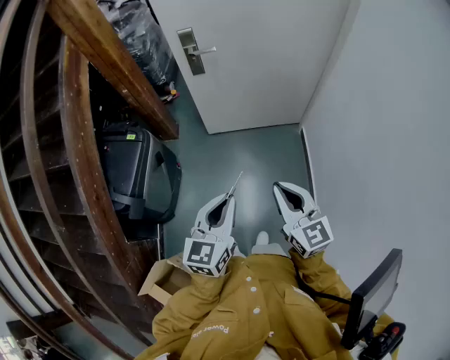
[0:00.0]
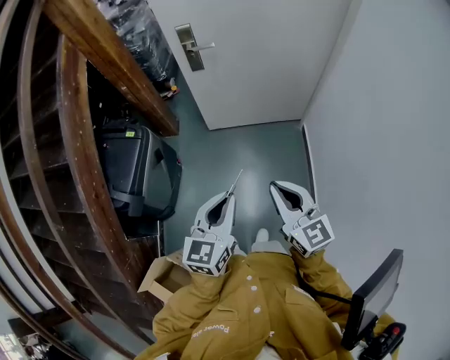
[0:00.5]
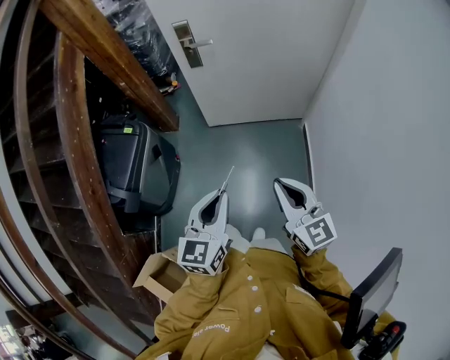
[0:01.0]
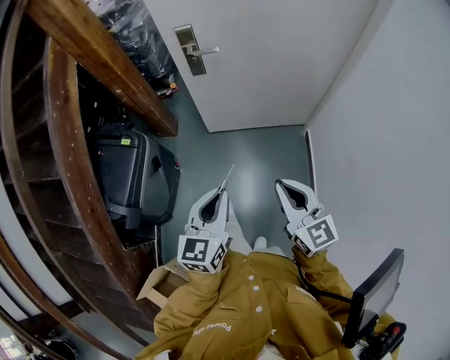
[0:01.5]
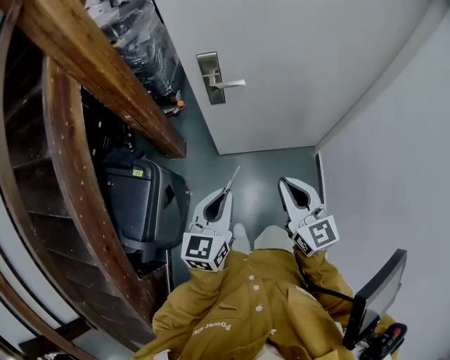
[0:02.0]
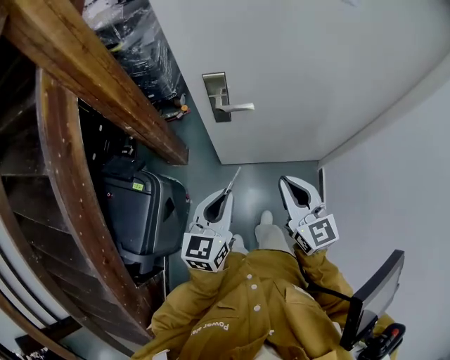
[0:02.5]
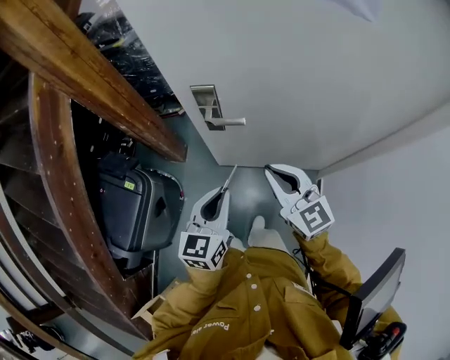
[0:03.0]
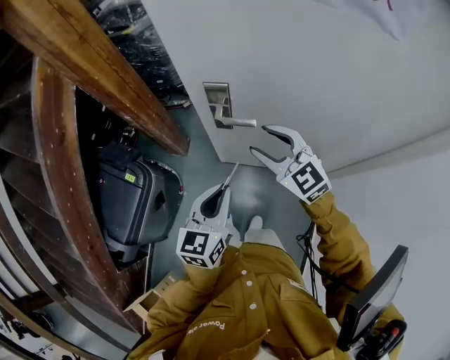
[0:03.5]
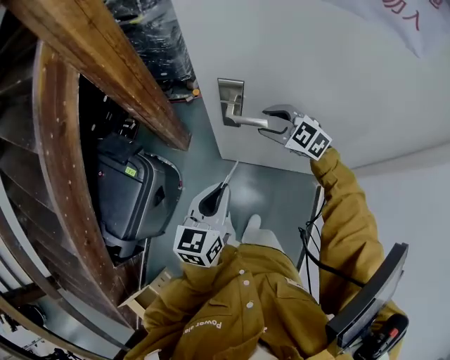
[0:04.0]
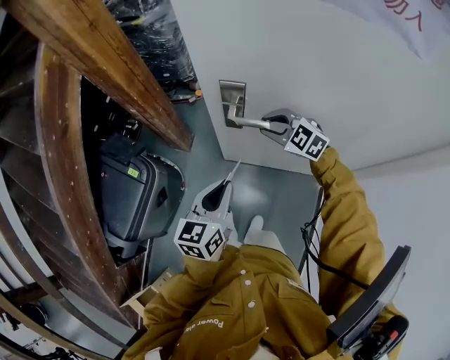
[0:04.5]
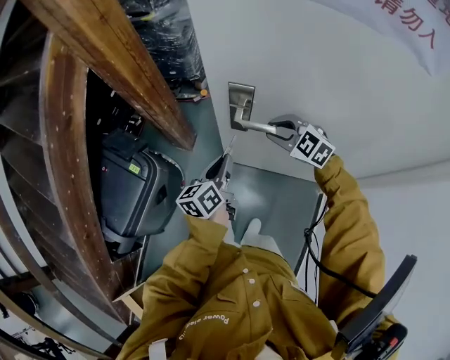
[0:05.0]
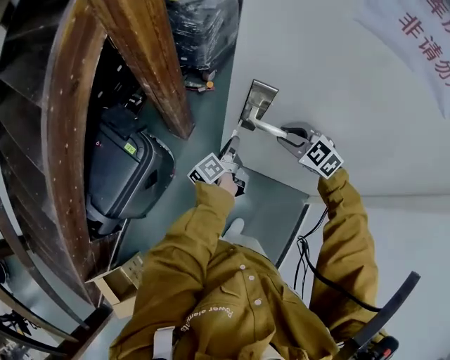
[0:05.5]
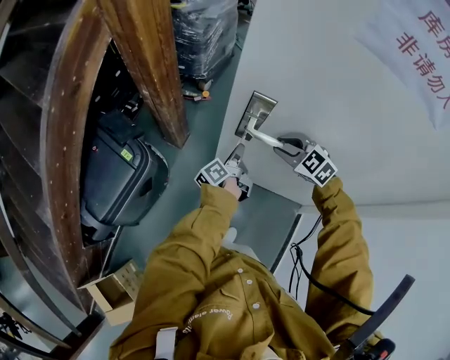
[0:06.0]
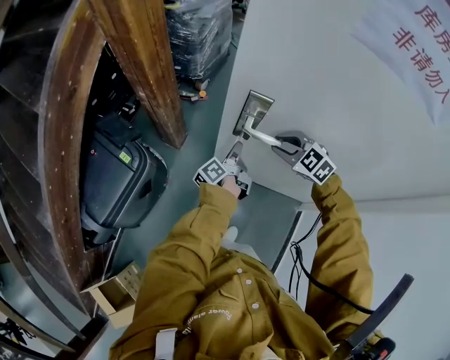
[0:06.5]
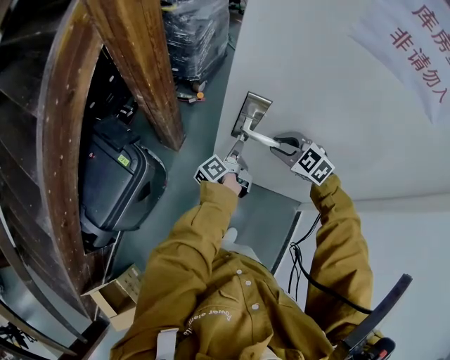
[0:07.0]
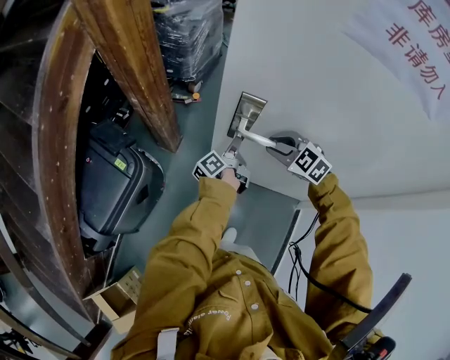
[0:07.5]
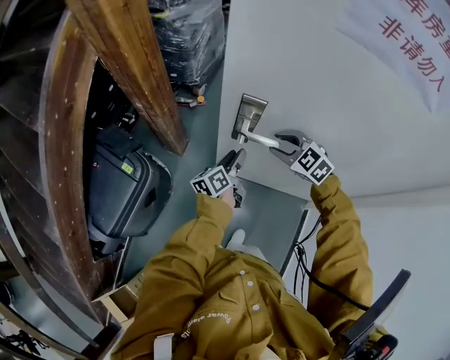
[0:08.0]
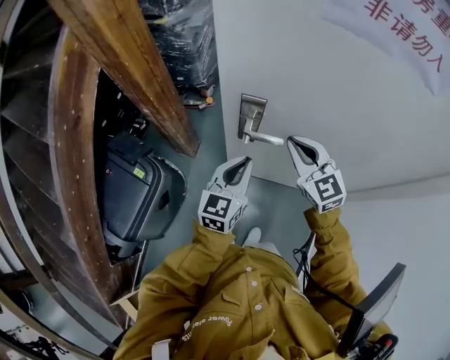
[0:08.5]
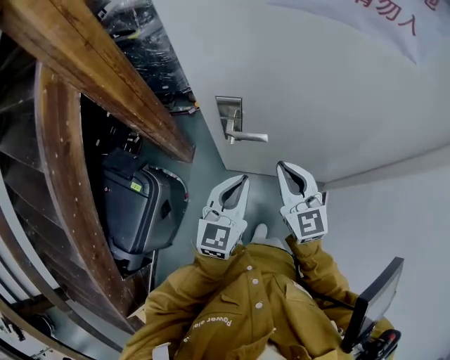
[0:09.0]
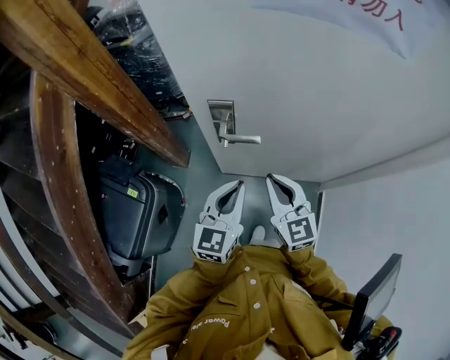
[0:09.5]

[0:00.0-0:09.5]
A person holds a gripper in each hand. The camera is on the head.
0:00.0 to 0:02.0: The grippers both shift forward by about 30 cm.
0:02.0 to 0:04.0: The right gripper moves roughly 40 cm, tips its fingers downward by roughly 30 degrees, and opens, while the left gripper ends up approximately 20 cm from where it was.
0:04.0 to 0:05.5: The left gripper travels forward and downward by approximately 20 cm, and rotates around the line of its fingers by roughly 60 degrees, counterclockwise from behind, while the right gripper closes.
0:05.5 to 0:07.5: The left gripper moves to the right, roughly 5 cm.
0:07.5 to 0:09.5: The right gripper ends up roughly 15 cm from where it was, tips its fingers upward by some 40 degrees, and closes. The left gripper changes place by about 25 cm, rotates around the line of its fingers by about 80 degrees, clockwise from behind, and opens, then closes once more.

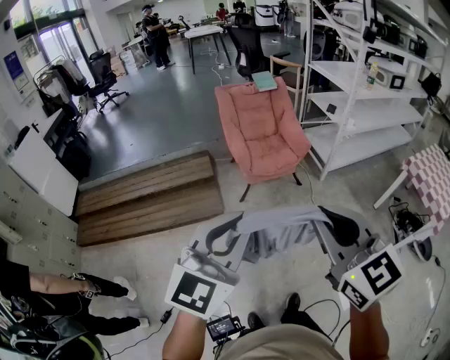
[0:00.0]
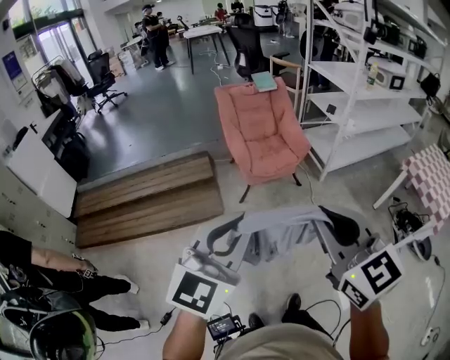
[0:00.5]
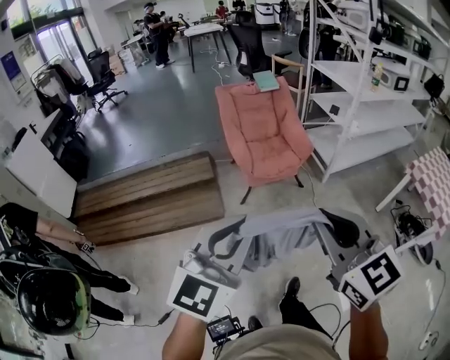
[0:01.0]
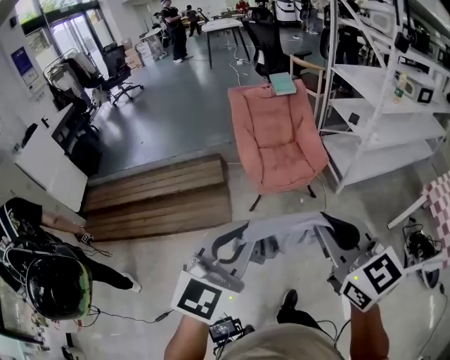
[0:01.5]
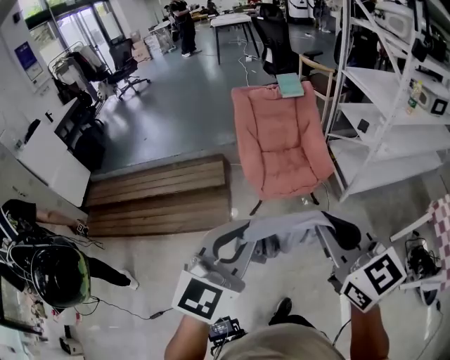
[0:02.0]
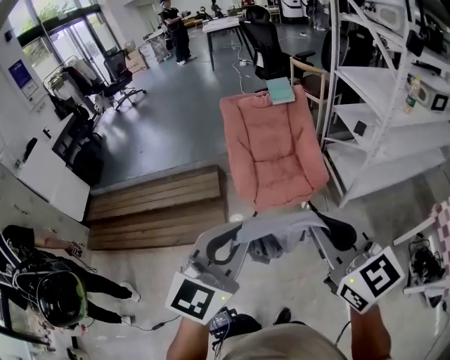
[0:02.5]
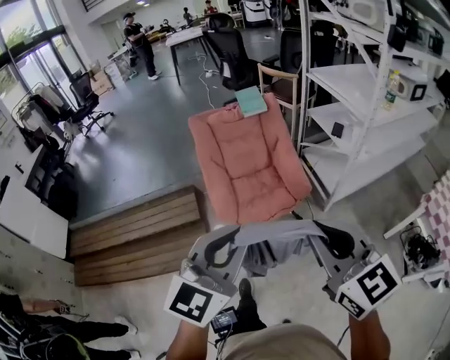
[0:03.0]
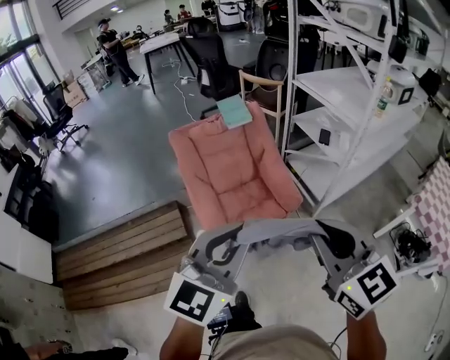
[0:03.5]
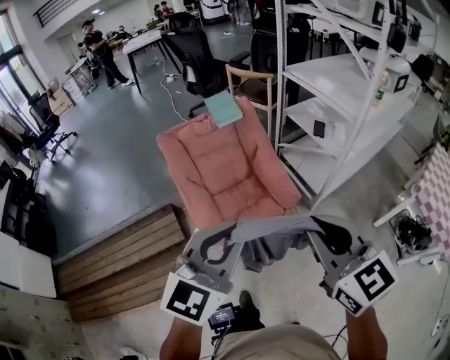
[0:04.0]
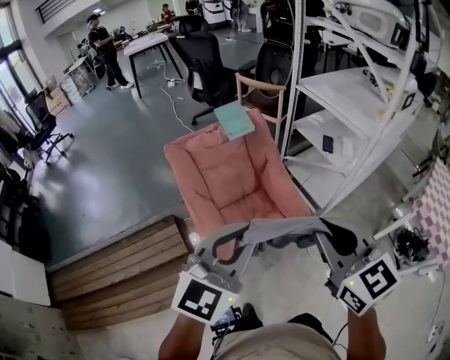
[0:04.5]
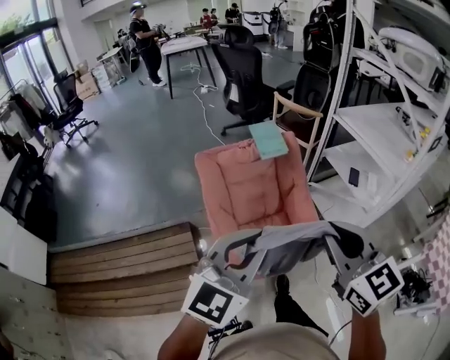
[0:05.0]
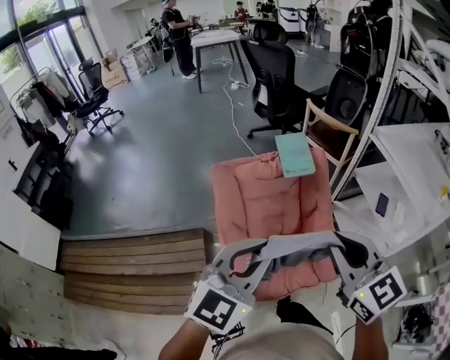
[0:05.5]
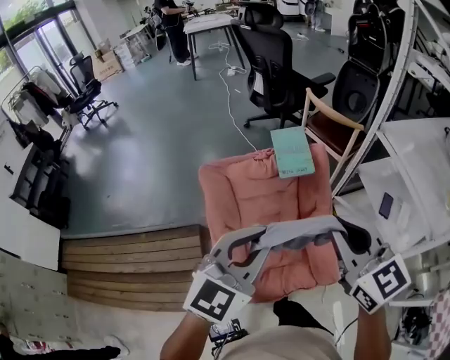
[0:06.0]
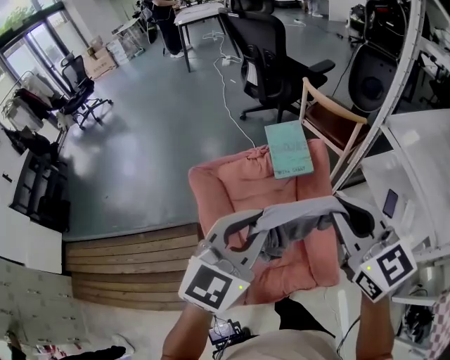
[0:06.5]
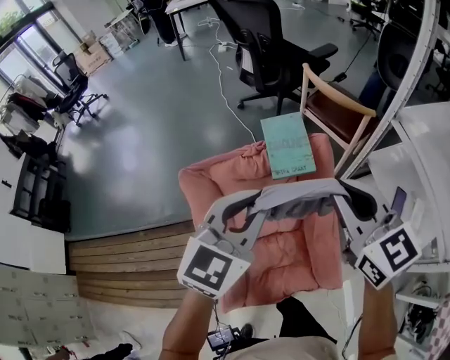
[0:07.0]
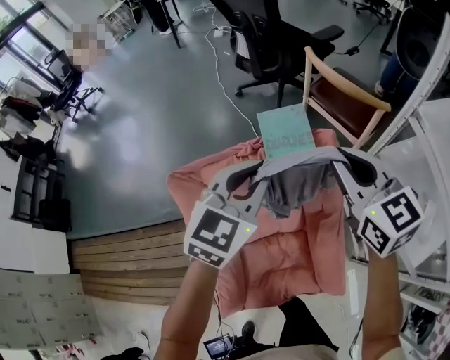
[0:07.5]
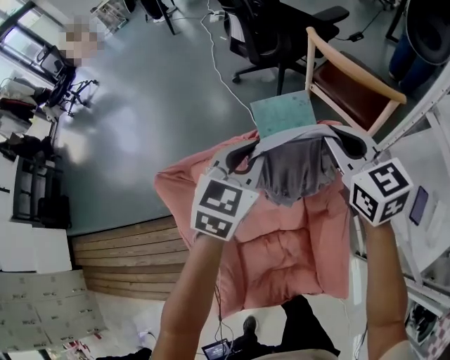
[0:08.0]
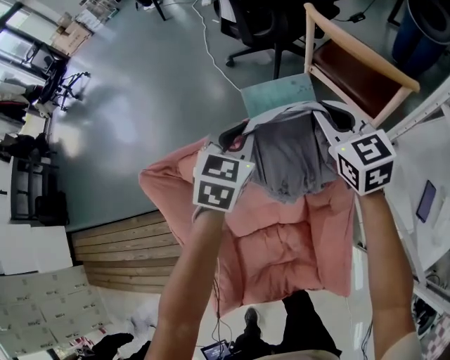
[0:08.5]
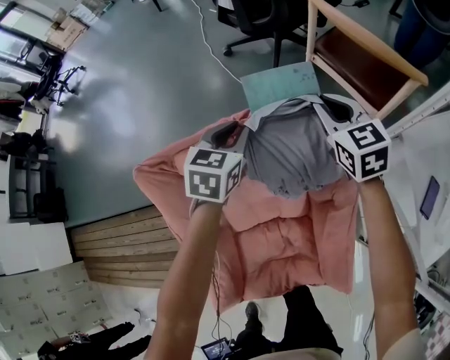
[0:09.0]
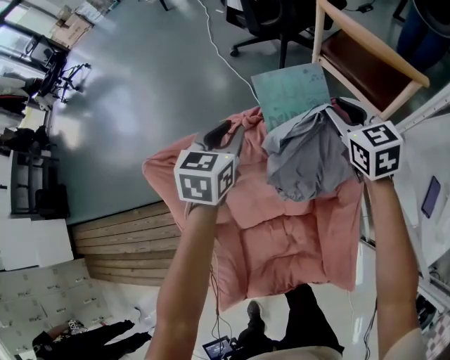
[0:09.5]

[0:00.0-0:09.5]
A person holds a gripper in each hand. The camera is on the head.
0:00.0 to 0:02.0: Both grippers travel together forward, approximately 25 cm.
0:02.0 to 0:04.0: The two grippers go about 35 cm forward. The left gripper swivels about 20 degrees; the right gripper turns by roughly 20 degrees.
0:04.0 to 0:05.5: The two grippers go some 30 cm forward and to the left.
0:05.5 to 0:07.5: Both grippers are carried forward, about 50 cm.
0:07.5 to 0:09.5: The left gripper is displaced downward, forward and to the left by about 25 cm, and rotates about 30 degrees, while the right gripper shifts some 30 cm downward and forward, and opens.

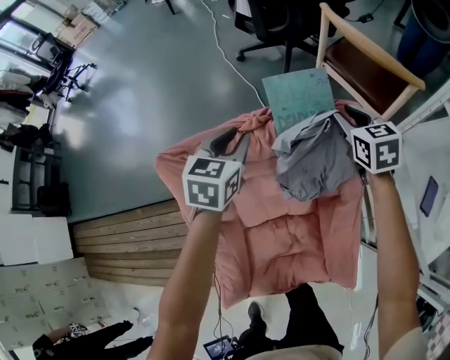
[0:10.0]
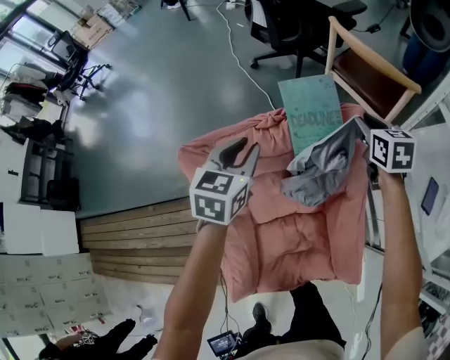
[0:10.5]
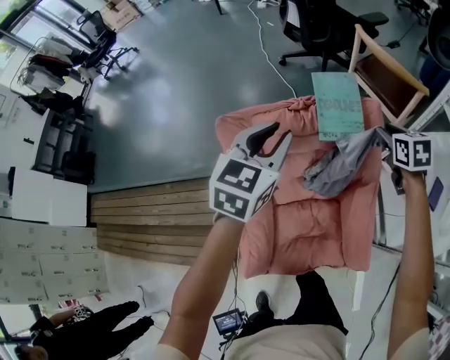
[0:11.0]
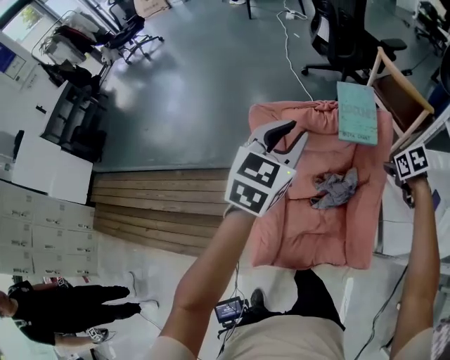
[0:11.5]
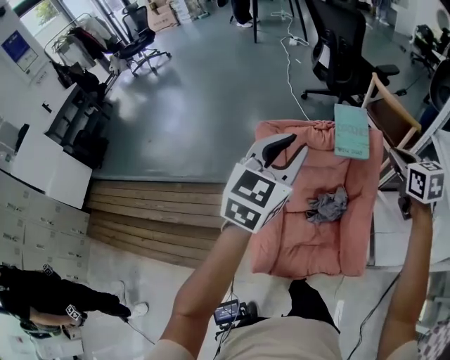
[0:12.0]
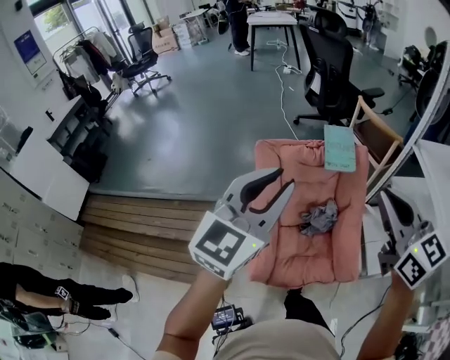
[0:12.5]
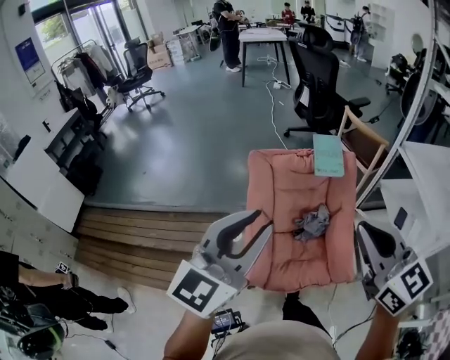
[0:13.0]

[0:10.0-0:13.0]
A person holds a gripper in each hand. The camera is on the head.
0:10.0 to 0:11.5: The left gripper moves backward and upward, about 35 cm. Meanwhile the right gripper is displaced backward by some 20 cm, and tips its fingers downward by some 30 degrees.
0:11.5 to 0:13.0: The right gripper heads backward, upward and to the left, covering about 60 cm, points its fingers approximately 60 degrees further upward, and closes up. Meanwhile the left gripper shifts approximately 40 cm backward and upward, and swivels some 20 degrees.

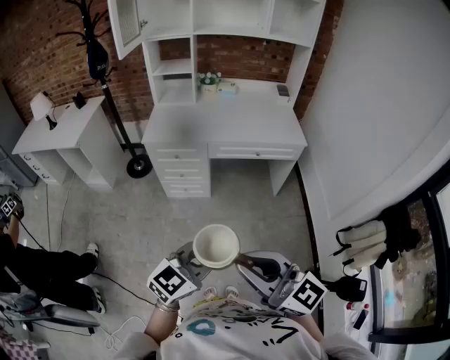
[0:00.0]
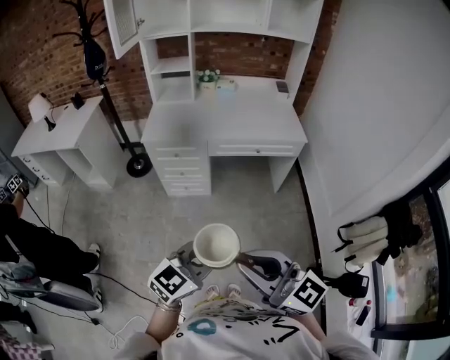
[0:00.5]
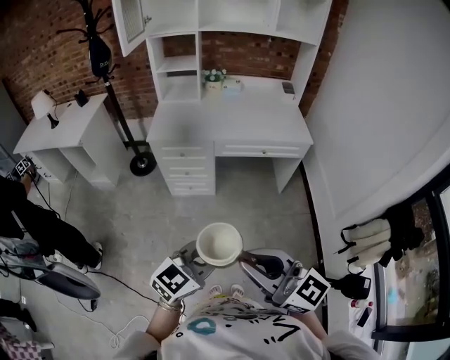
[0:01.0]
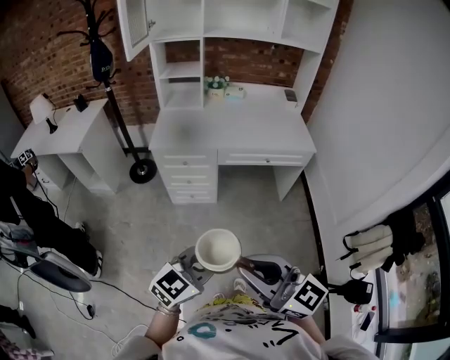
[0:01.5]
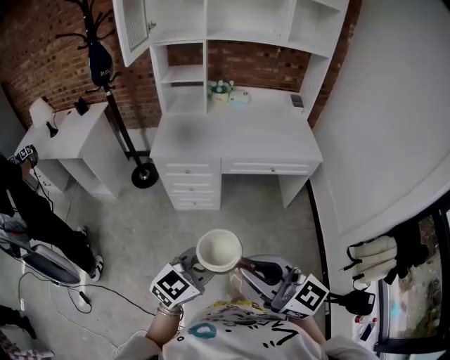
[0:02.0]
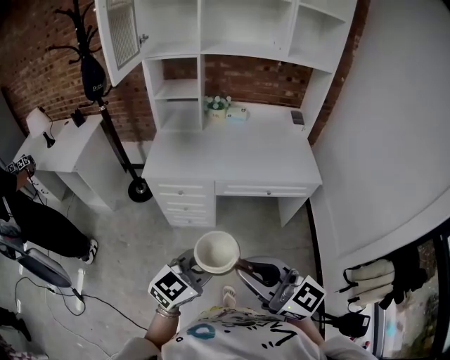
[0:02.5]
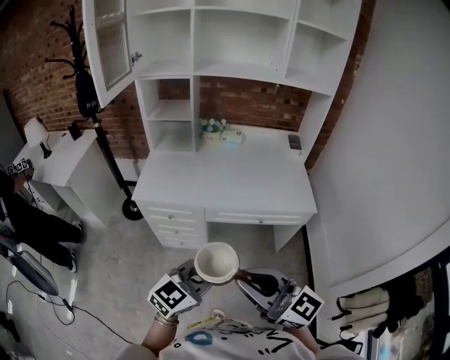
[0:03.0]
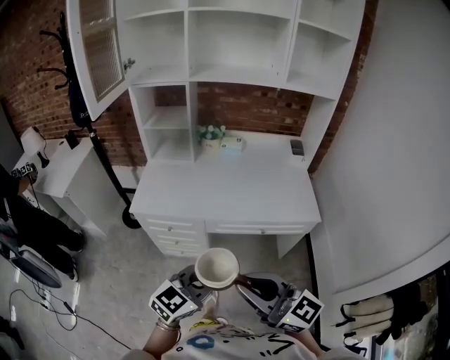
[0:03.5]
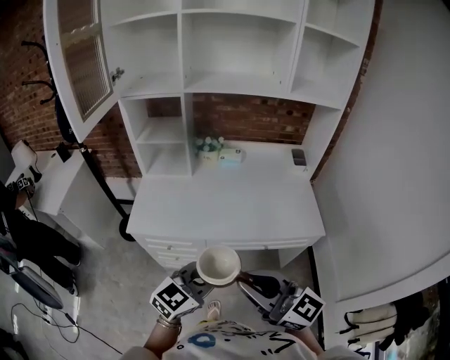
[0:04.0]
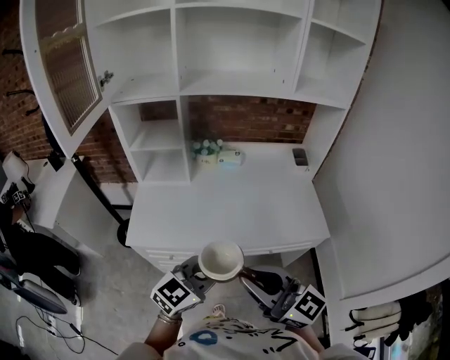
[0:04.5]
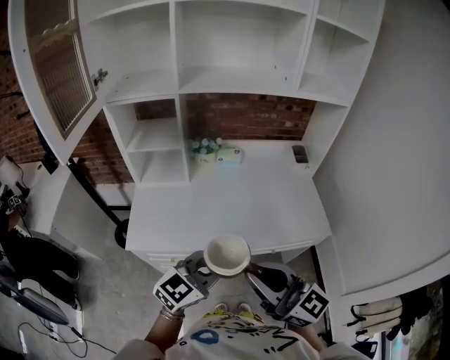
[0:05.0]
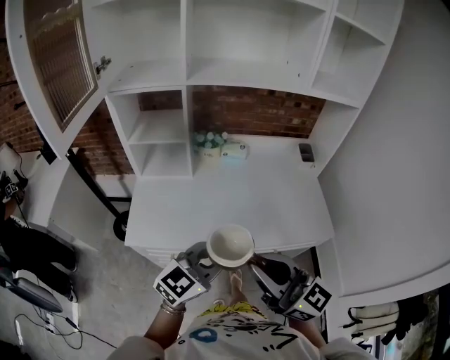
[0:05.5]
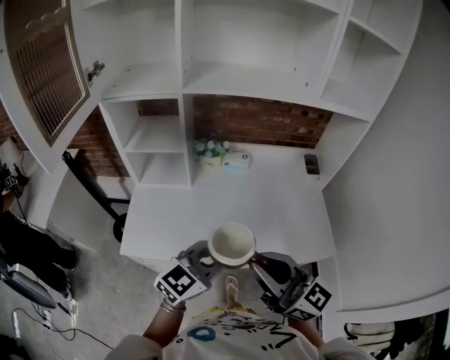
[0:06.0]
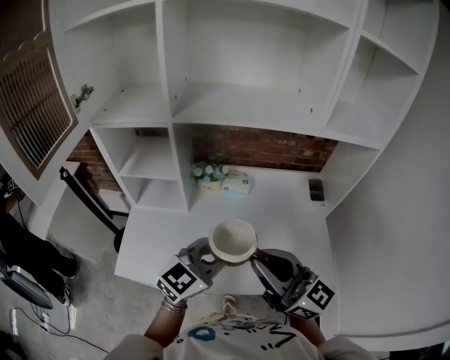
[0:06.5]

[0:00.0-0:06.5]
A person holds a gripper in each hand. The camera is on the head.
0:00.0 to 0:02.0: The grippers both shift forward and to the left by about 10 cm.
0:02.0 to 0:04.5: Both grippers move forward, approximately 40 cm.
0:04.5 to 0:06.5: The two grippers go approximately 25 cm forward.
